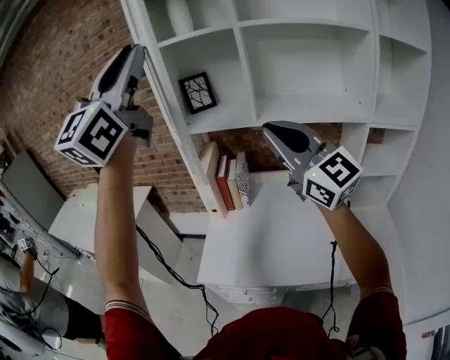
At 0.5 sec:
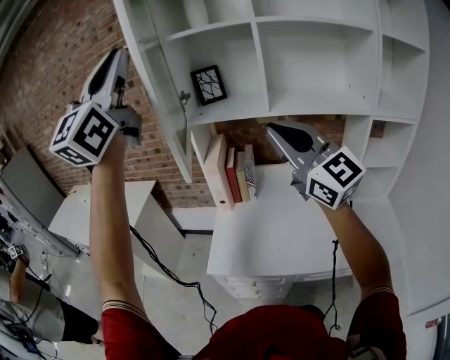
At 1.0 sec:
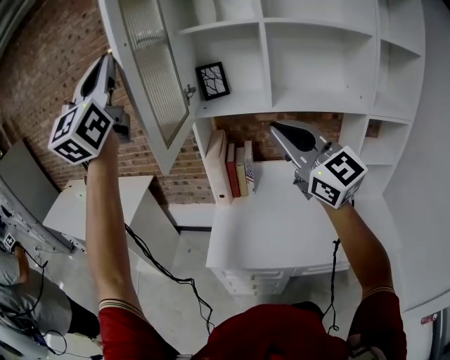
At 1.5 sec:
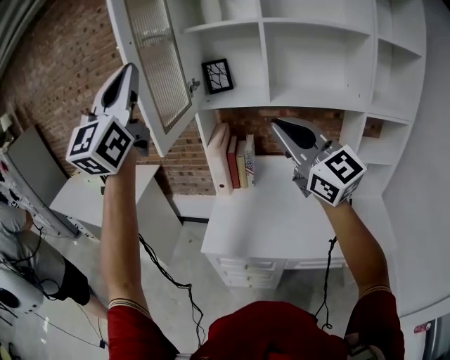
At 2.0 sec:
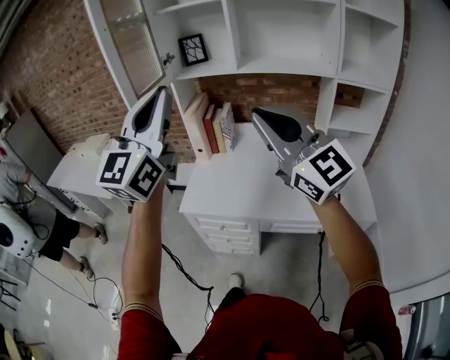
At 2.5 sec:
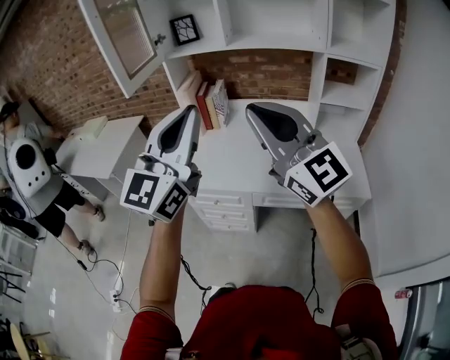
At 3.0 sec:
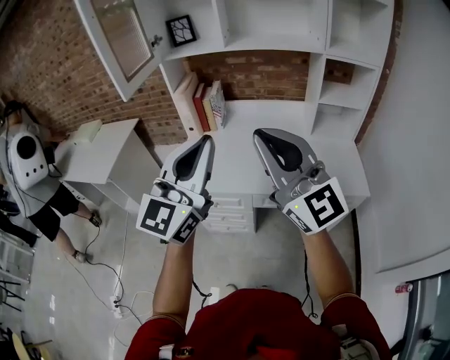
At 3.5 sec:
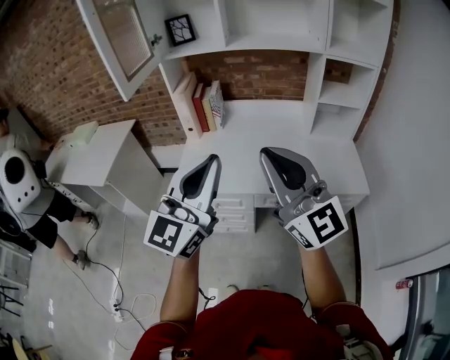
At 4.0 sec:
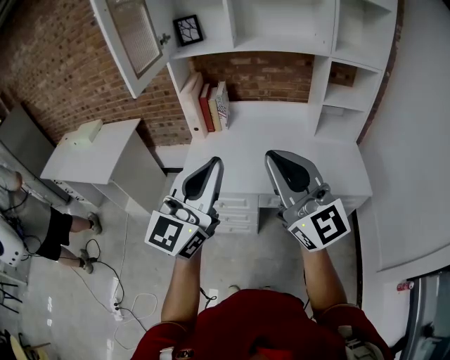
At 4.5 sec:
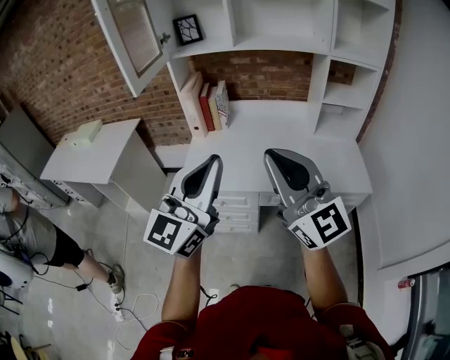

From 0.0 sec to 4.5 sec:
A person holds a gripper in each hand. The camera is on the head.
From 0.0 sec to 2.0 sec: The left gripper goes approximately 30 cm backward and downward, and closes its fingers; the right gripper goes about 25 cm backward.
From 2.0 sec to 4.5 sec: The right gripper moves backward and downward, roughly 15 cm; the left gripper moves downward and backward, some 20 cm.

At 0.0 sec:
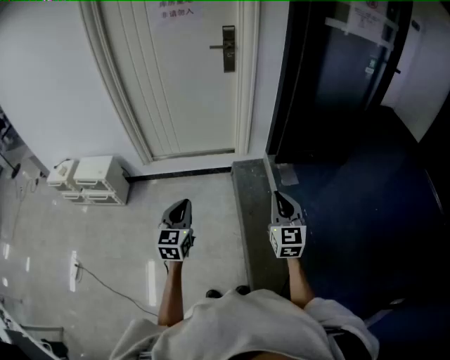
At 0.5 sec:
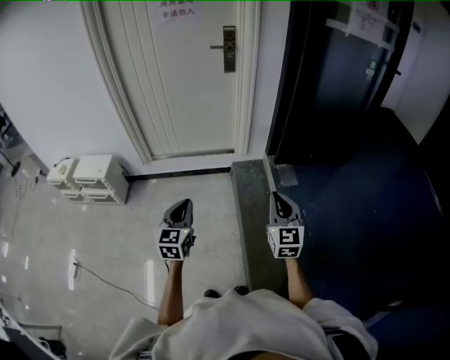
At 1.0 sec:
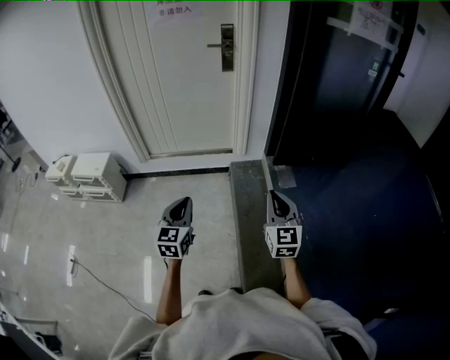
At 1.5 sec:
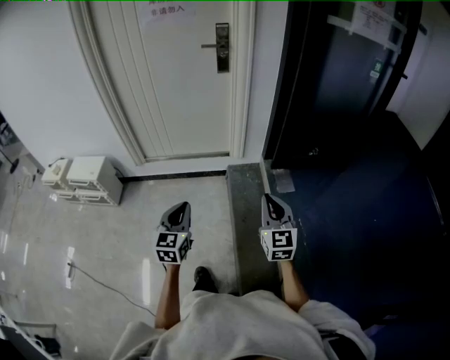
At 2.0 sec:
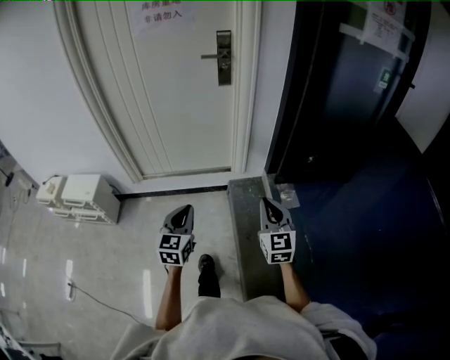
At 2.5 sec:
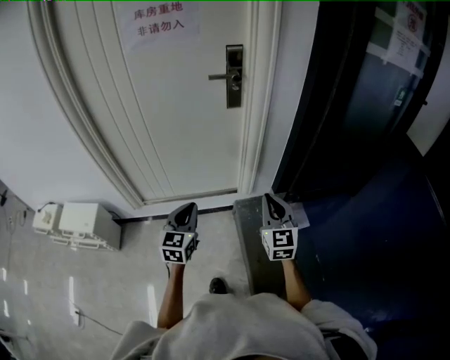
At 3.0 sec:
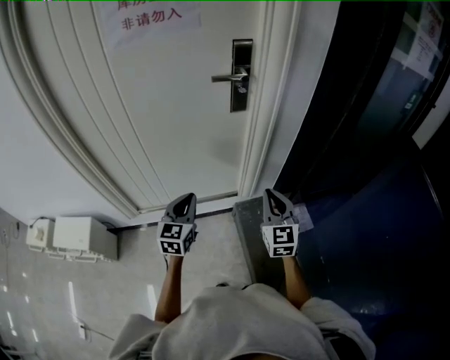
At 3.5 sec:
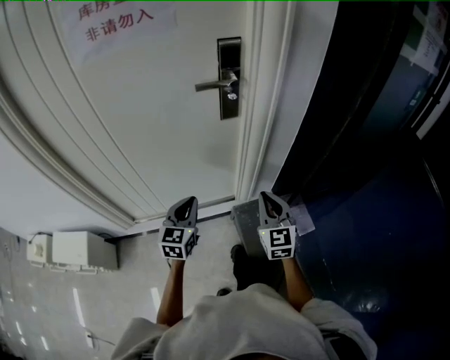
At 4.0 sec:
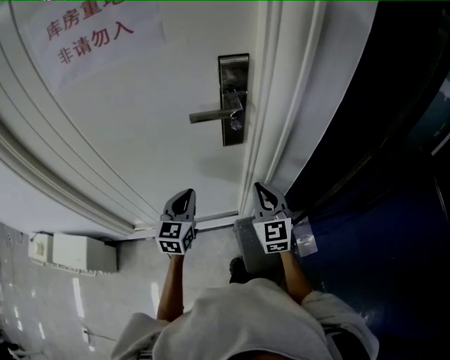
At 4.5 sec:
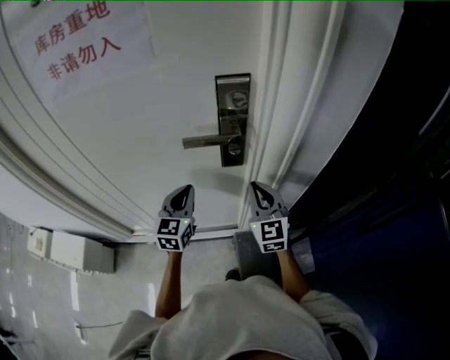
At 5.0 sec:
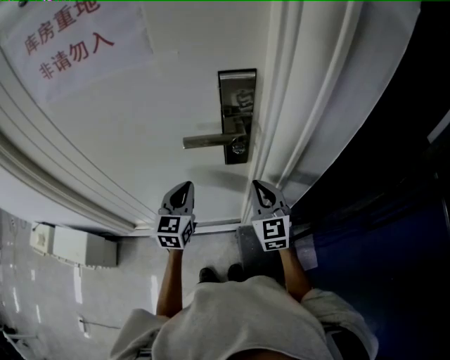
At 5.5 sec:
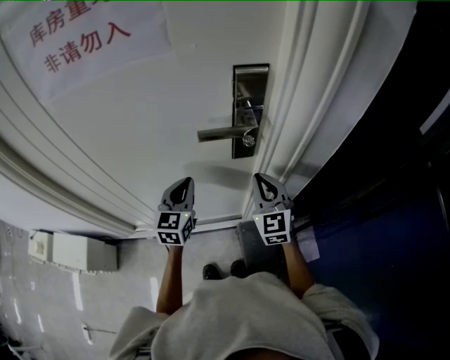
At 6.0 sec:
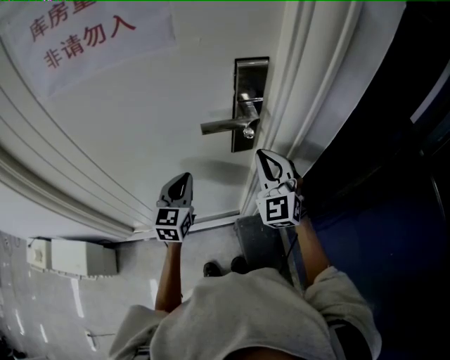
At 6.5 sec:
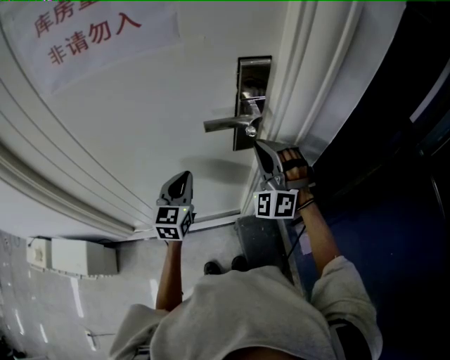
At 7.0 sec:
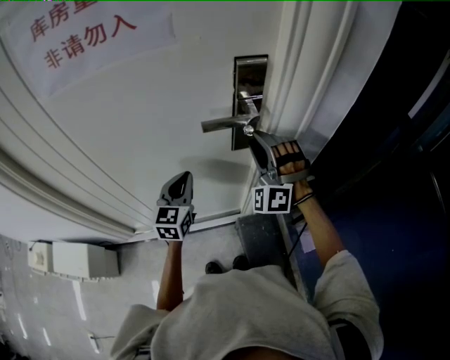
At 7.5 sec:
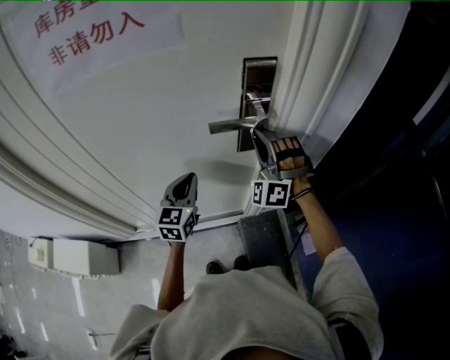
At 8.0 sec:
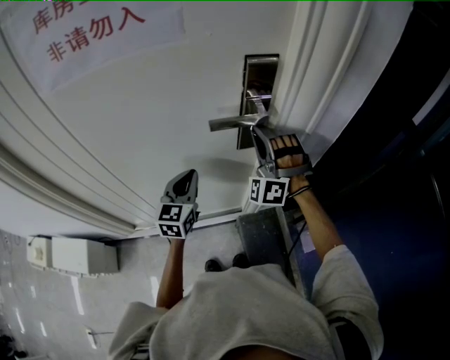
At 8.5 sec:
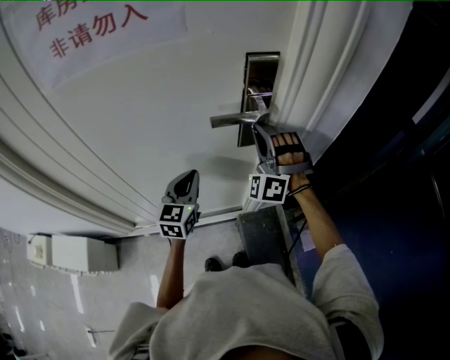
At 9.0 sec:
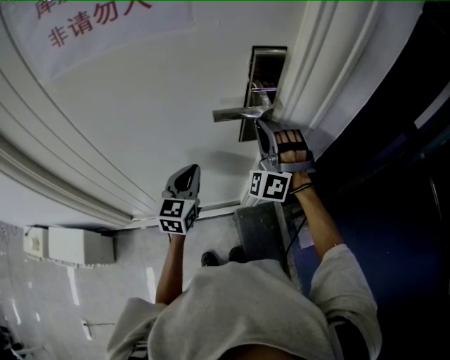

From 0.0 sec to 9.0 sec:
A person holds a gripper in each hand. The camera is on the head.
From 0.0 sec to 2.0 sec: Both grippers travel together forward, some 20 cm.
From 2.0 sec to 4.5 sec: Both grippers are carried forward, approximately 70 cm.
From 4.5 sec to 7.0 sec: The right gripper shifts approximately 10 cm upward and to the left, twists about 70 degrees counterclockwise, seen from behind, and opens up; the left gripper ends up some 5 cm from where it was.
From 7.0 sec to 9.0 sec: The right gripper closes up.

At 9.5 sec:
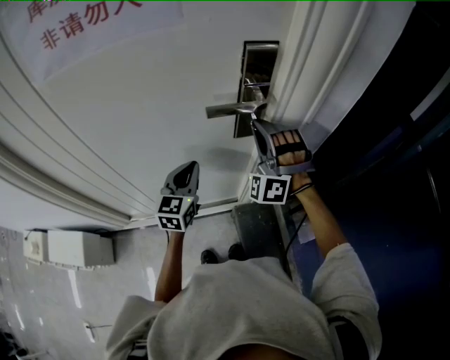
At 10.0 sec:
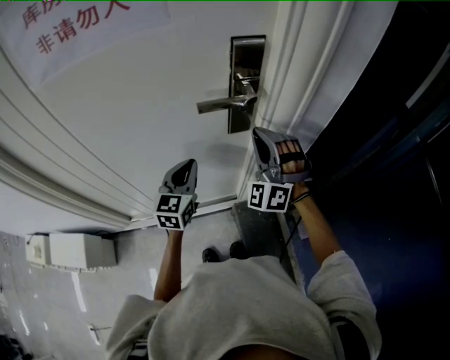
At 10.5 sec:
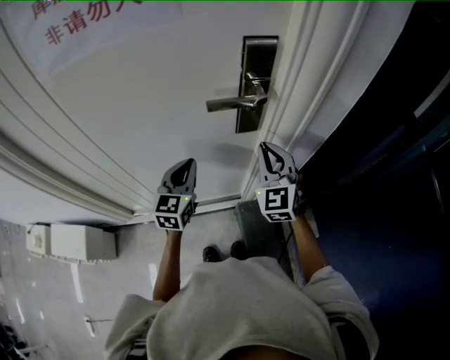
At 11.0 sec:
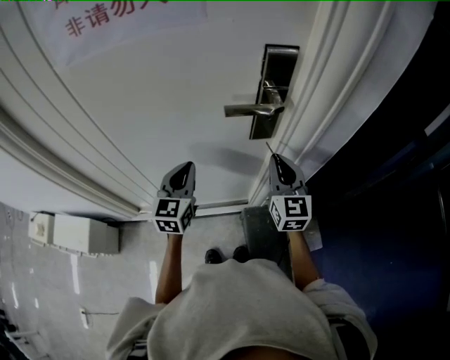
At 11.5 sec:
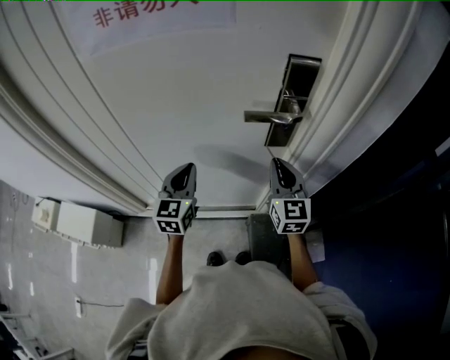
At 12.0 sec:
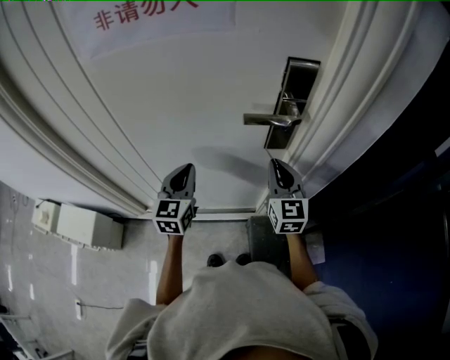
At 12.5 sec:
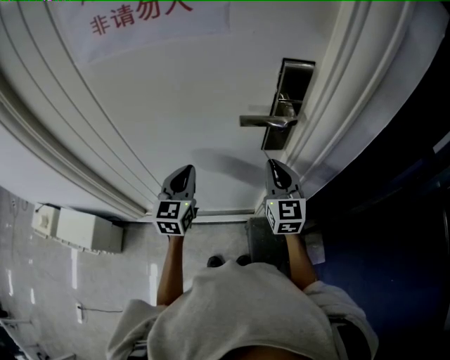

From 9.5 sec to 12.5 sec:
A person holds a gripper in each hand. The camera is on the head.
From 9.5 sec to 11.0 sec: The left gripper changes place by about 5 cm, while the right gripper goes approximately 5 cm downward, and rolls clockwise, seen from behind, by roughly 80 degrees.
From 11.0 sec to 12.5 sec: There are only small adjustments of the grippers.

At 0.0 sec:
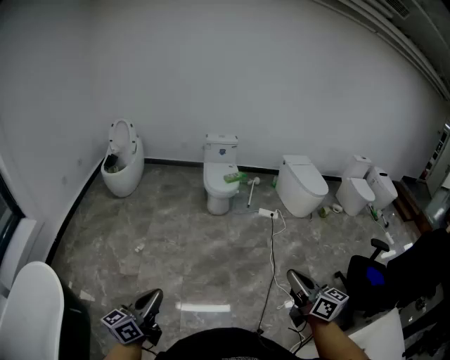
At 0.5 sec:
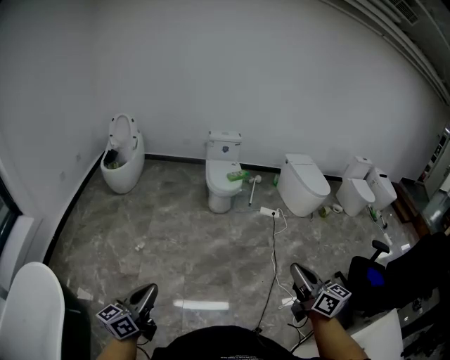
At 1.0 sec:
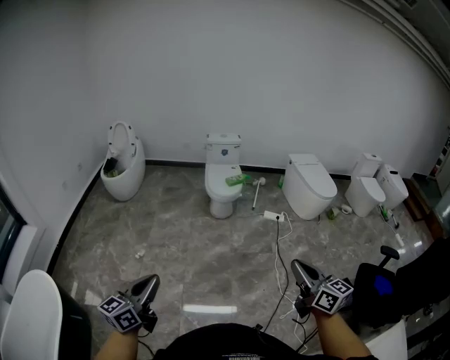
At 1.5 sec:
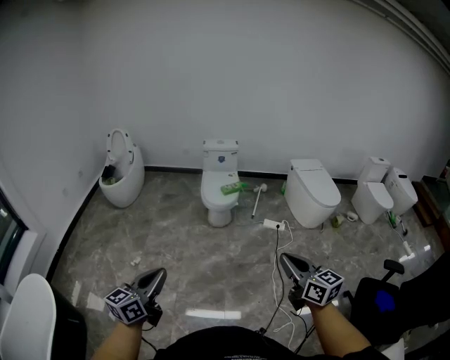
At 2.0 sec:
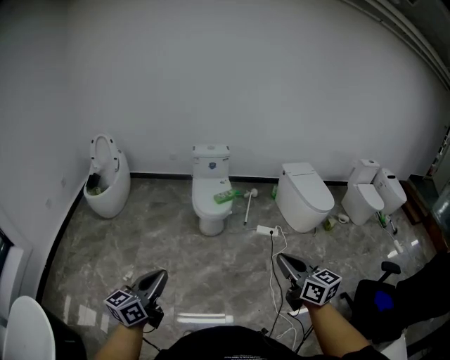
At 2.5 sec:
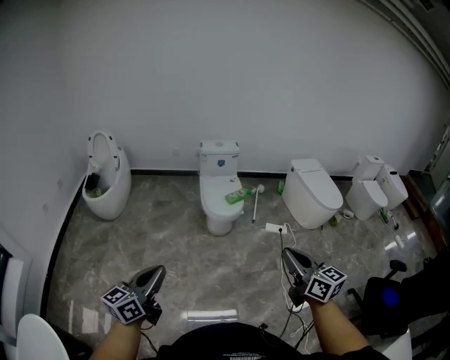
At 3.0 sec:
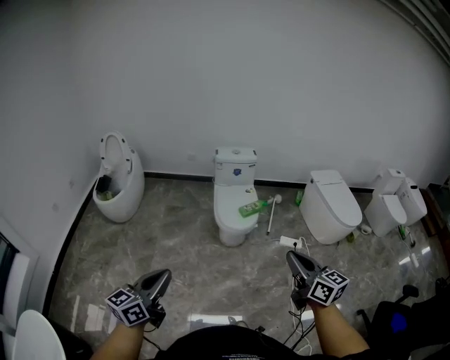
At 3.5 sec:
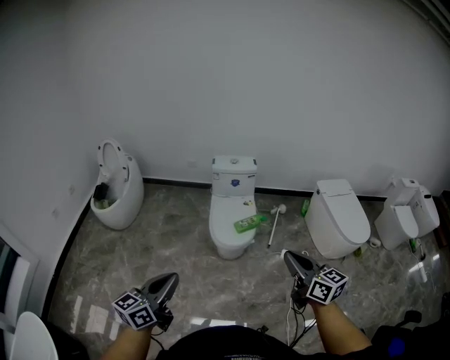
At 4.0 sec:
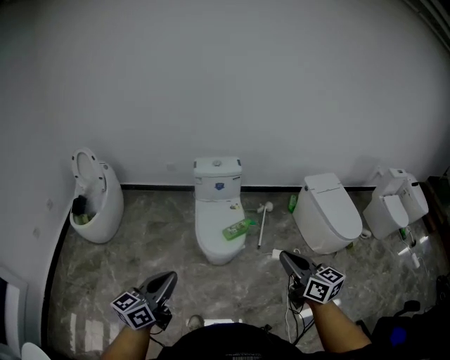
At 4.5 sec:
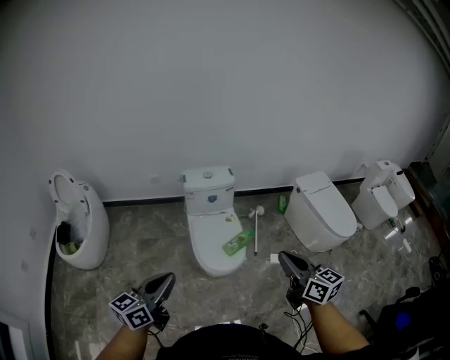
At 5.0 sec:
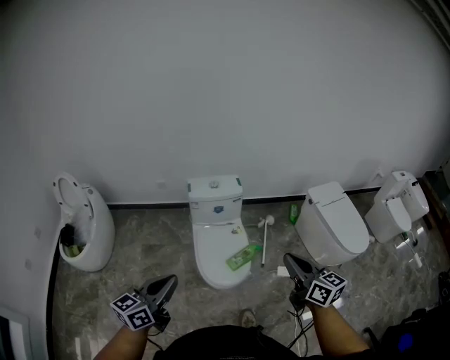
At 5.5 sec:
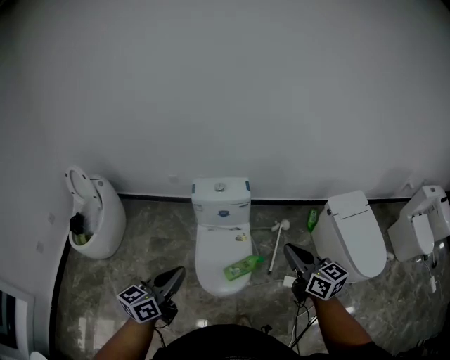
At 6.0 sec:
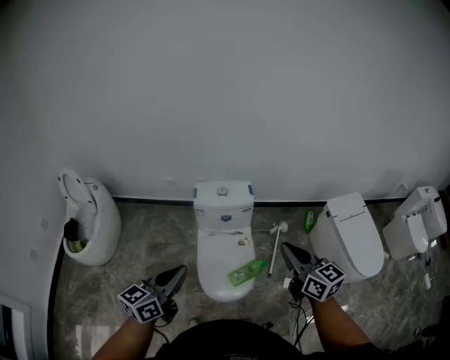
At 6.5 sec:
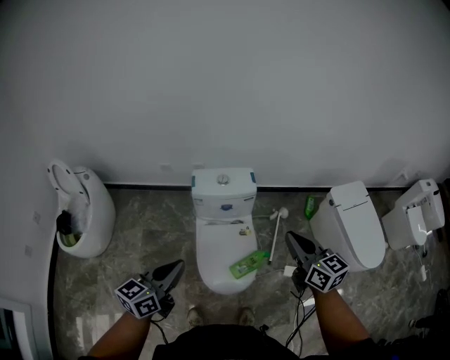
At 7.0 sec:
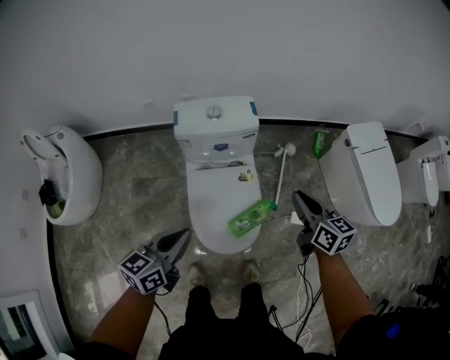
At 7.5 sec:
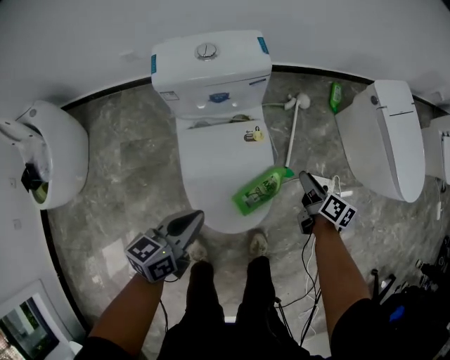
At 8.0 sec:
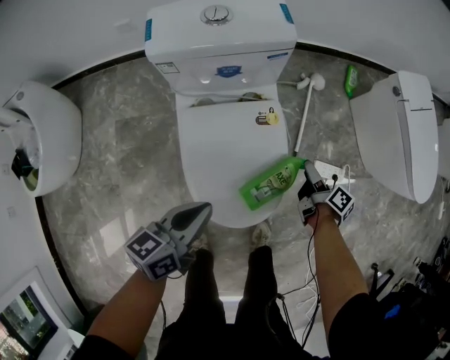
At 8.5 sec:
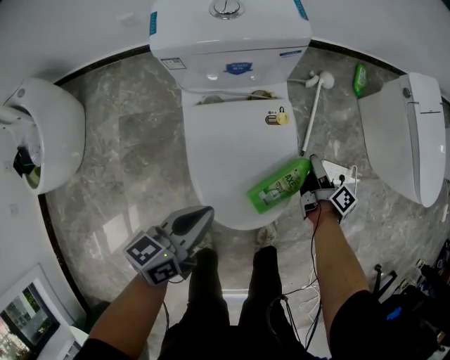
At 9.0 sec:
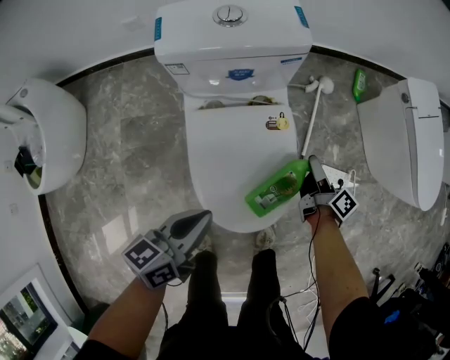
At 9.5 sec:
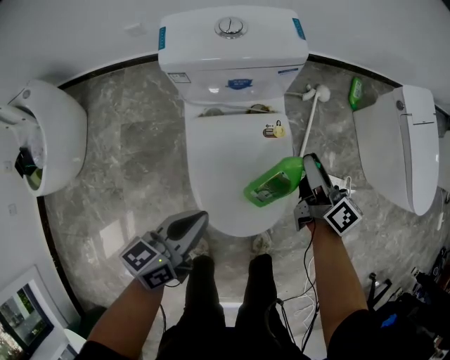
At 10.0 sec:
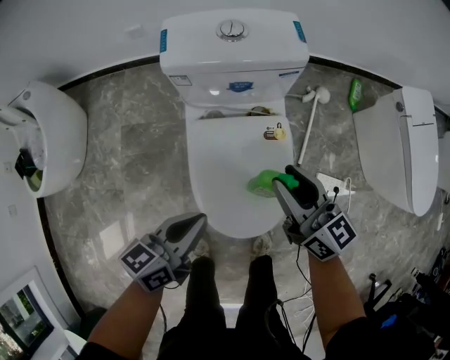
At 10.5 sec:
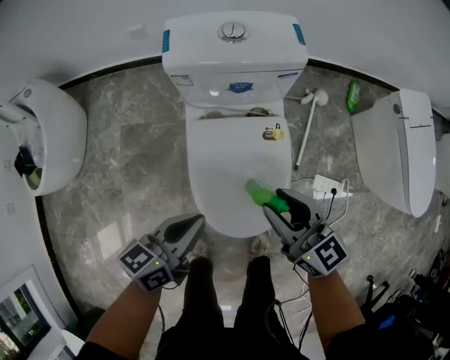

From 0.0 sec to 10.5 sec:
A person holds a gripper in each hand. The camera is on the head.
From 0.0 sec to 2.0 sec: The two grippers go roughly 40 cm forward.
From 2.0 sec to 4.0 sec: The pair of grippers is taken forward, approximately 50 cm.
From 4.0 sec to 6.5 sec: The two grippers travel together, forward, approximately 50 cm.
From 6.5 sec to 8.5 sec: The grippers both shift downward by roughly 60 cm. The left gripper rotates about 30 degrees. Meanwhile the right gripper rotates around the line of its fingers by about 70 degrees, clockwise from behind, and opens its fingers.
From 8.5 sec to 10.5 sec: The left gripper shifts by some 5 cm; the right gripper moves upward and to the left, approximately 30 cm, and rolls counterclockwise, seen from behind, by approximately 70 degrees.
